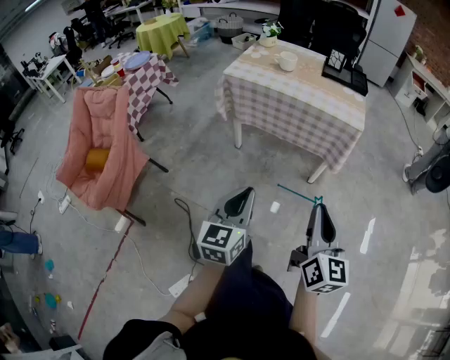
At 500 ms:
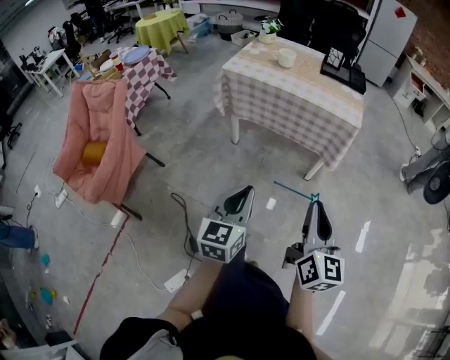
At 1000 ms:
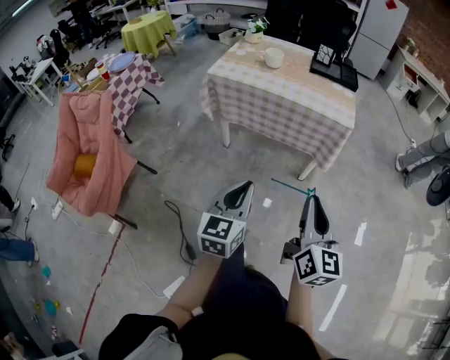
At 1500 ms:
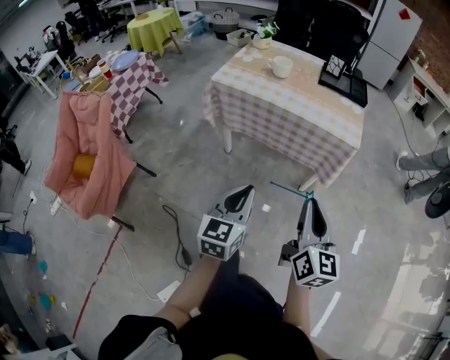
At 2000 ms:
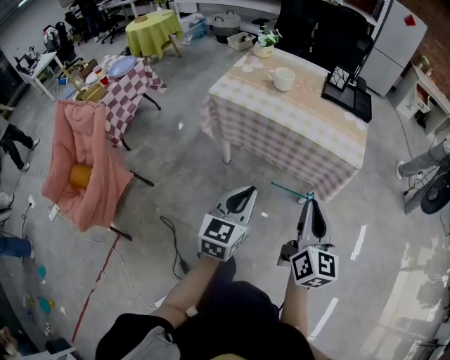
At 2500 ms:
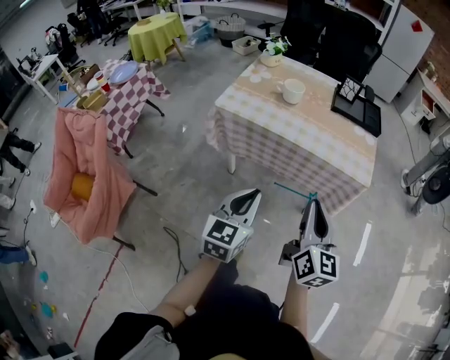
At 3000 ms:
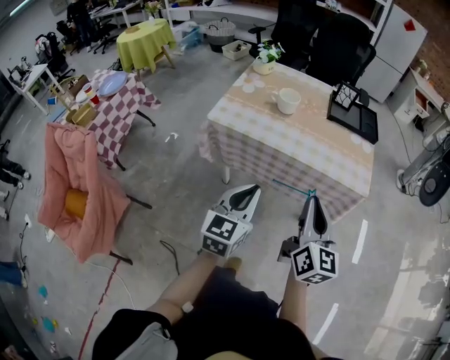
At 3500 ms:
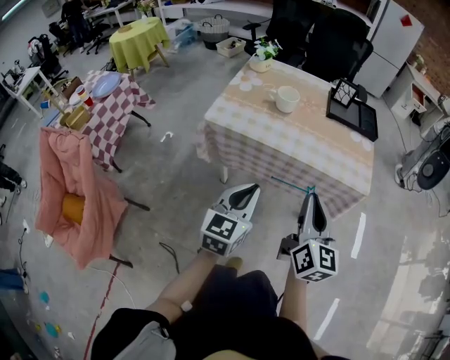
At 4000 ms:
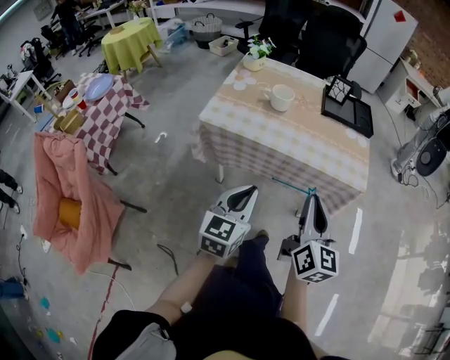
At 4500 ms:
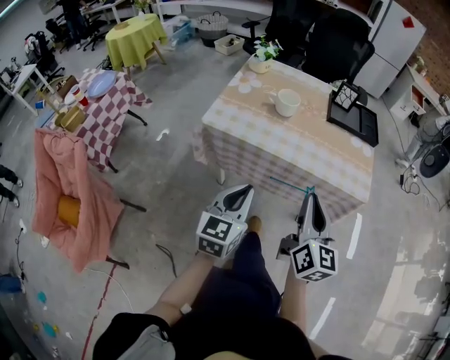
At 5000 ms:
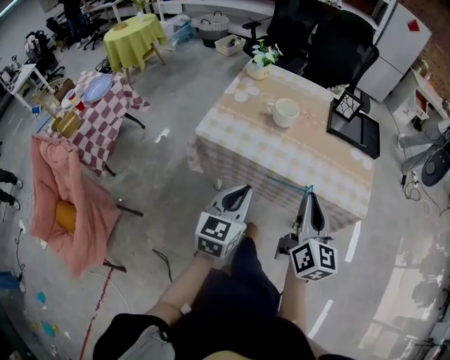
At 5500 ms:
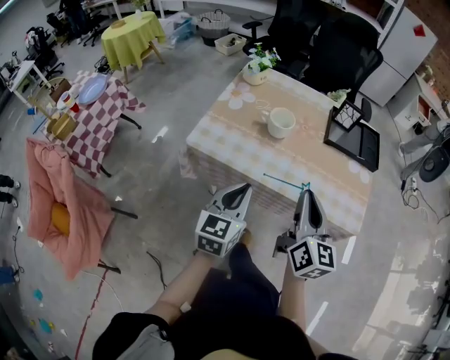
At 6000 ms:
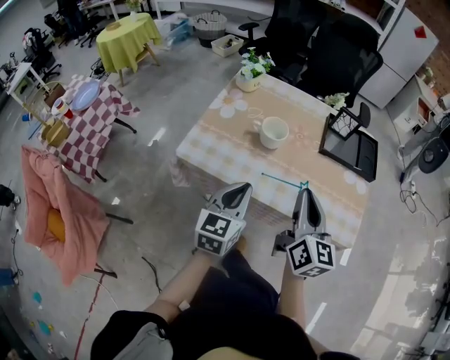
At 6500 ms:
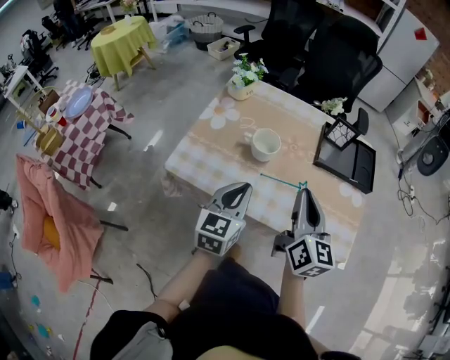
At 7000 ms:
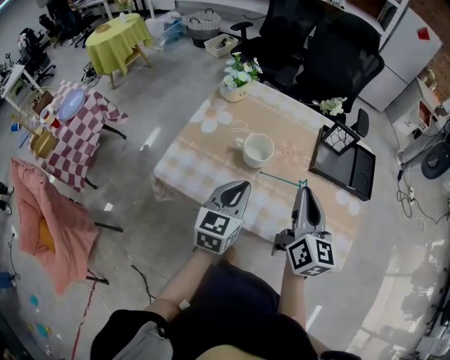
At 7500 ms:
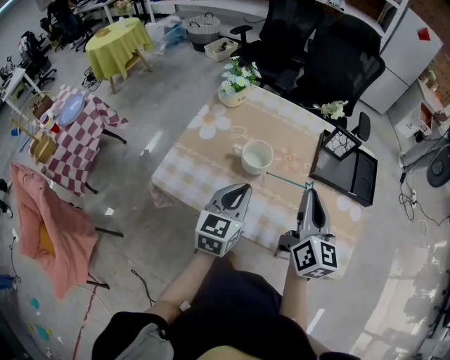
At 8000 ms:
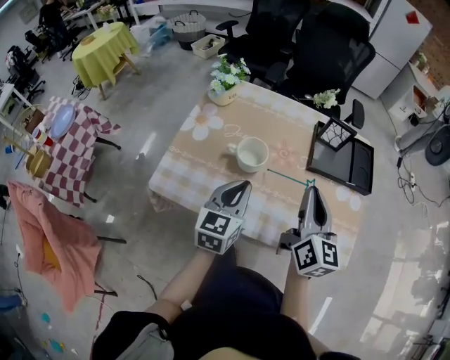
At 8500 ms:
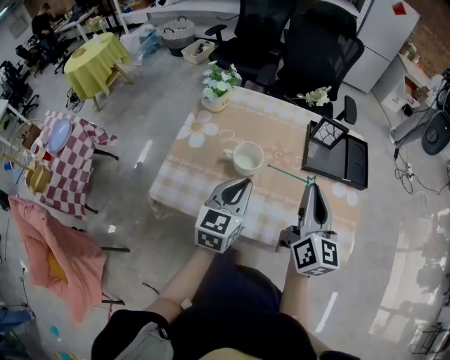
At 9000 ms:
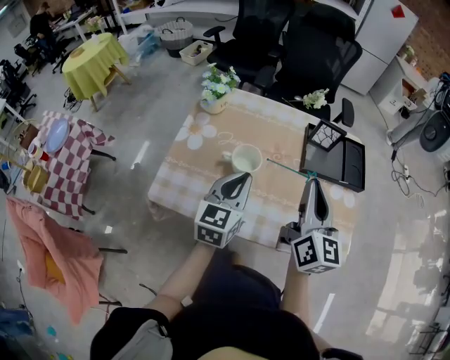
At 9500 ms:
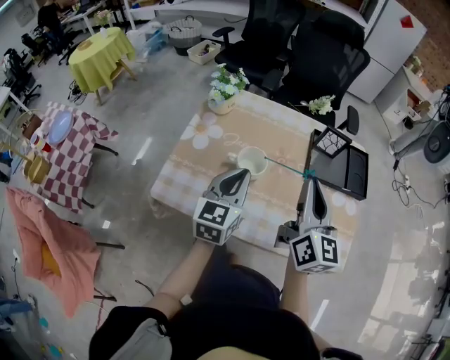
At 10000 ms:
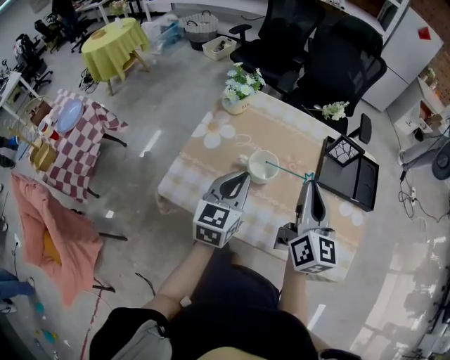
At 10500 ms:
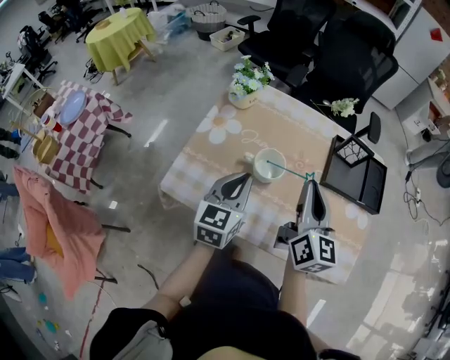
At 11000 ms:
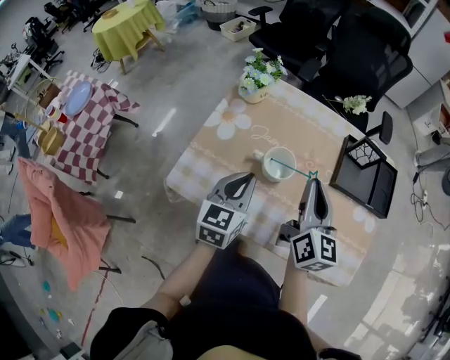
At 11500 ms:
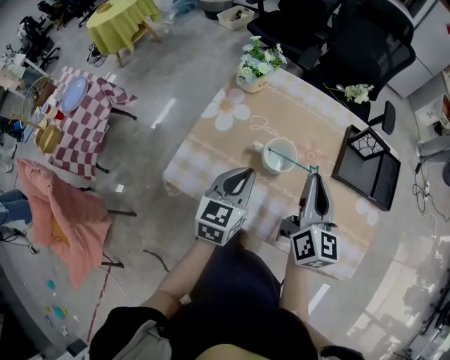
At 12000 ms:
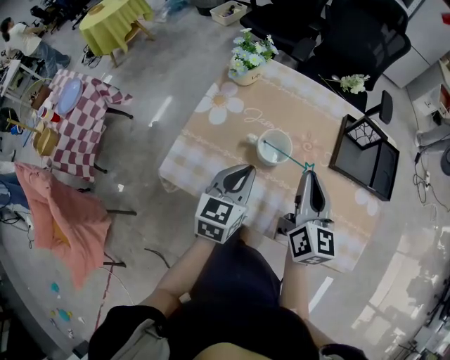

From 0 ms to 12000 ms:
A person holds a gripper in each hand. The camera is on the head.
From 0 ms to 2000 ms: Both grippers travel together forward, approximately 20 cm.
From 2000 ms to 4000 ms: Both grippers travel together forward and to the left, some 15 cm.
From 4000 ms to 6000 ms: Both grippers move forward, approximately 20 cm.
From 6000 ms to 8000 ms: The grippers both shift forward by about 15 cm.
From 8000 ms to 10000 ms: Both grippers travel together to the left, some 5 cm.
From 10000 ms to 12000 ms: Both grippers move downward, about 5 cm.

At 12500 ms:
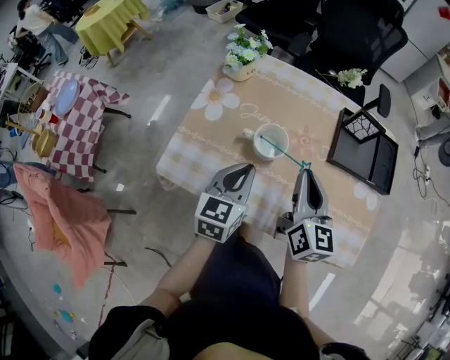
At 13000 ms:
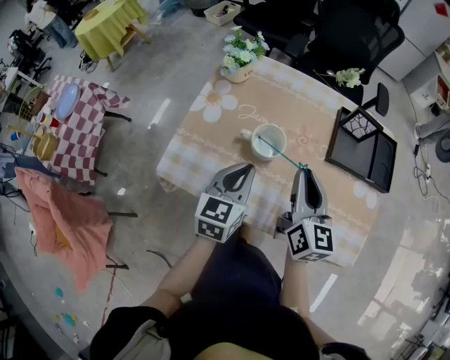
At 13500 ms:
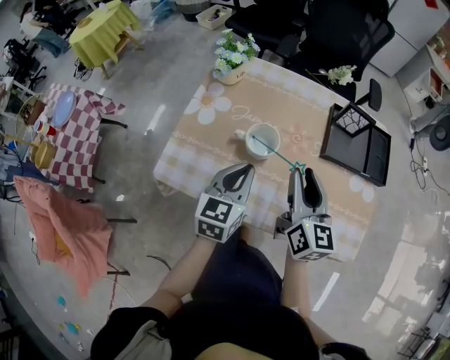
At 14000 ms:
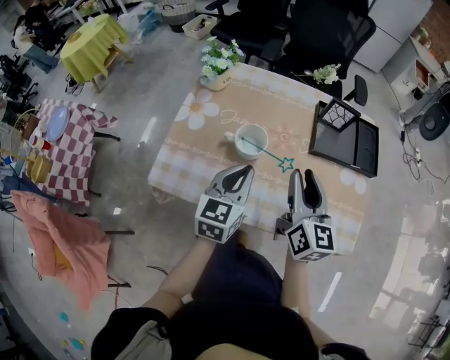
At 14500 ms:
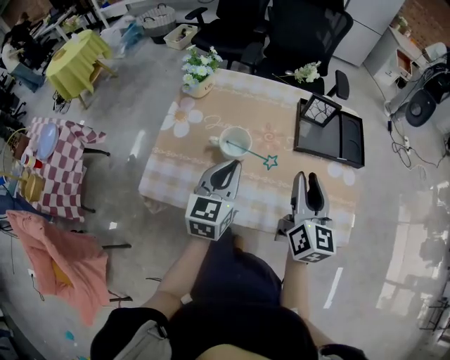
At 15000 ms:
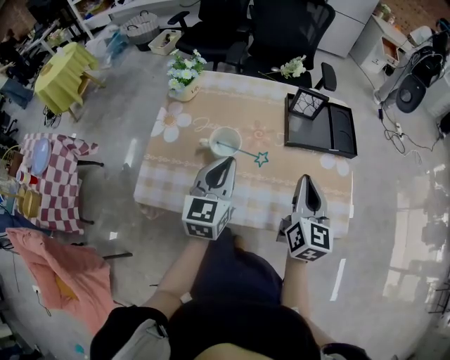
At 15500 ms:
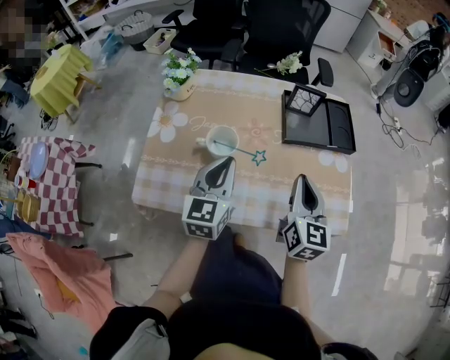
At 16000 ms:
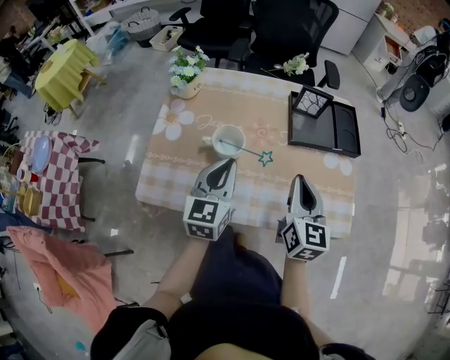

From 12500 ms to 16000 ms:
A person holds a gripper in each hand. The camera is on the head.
From 12500 ms to 14500 ms: The right gripper shifts roughly 10 cm to the right, and opens its fingers. Meanwhile the left gripper changes place by roughly 5 cm.
From 14500 ms to 16000 ms: The right gripper closes its fingers.

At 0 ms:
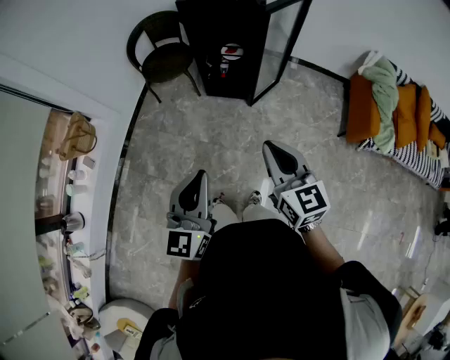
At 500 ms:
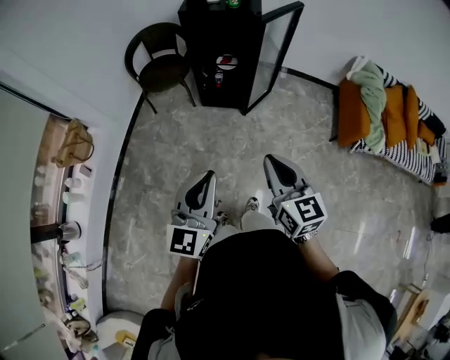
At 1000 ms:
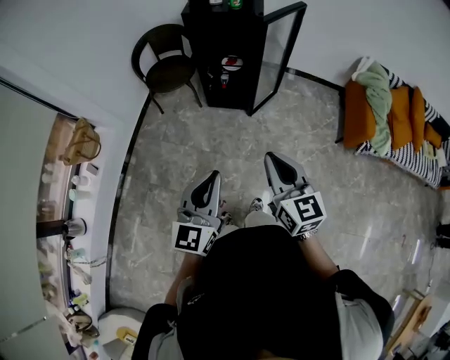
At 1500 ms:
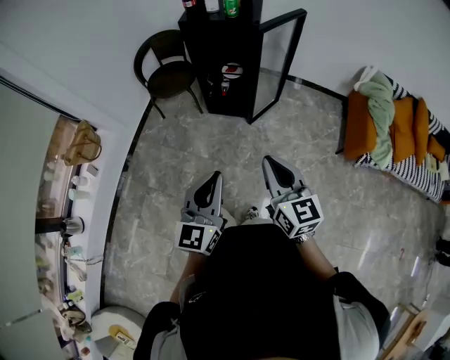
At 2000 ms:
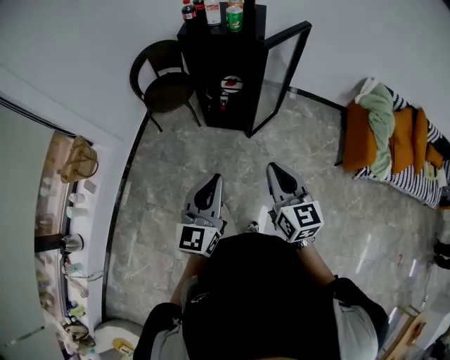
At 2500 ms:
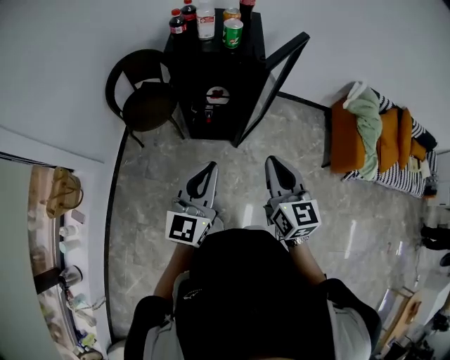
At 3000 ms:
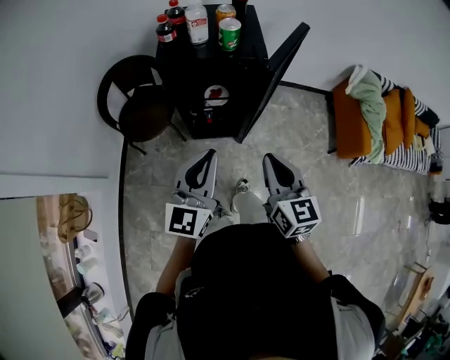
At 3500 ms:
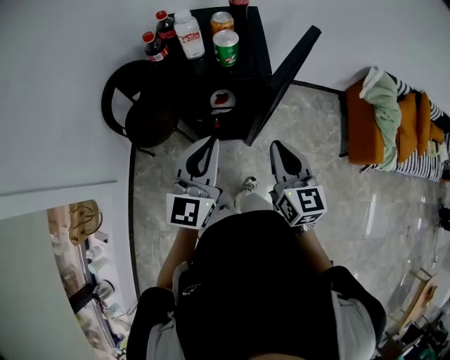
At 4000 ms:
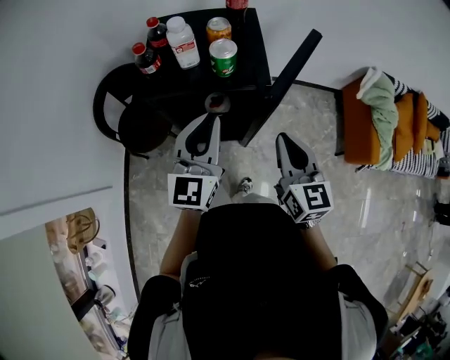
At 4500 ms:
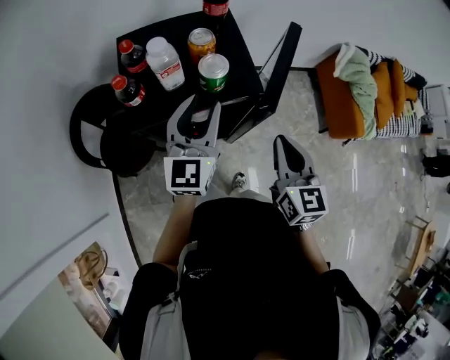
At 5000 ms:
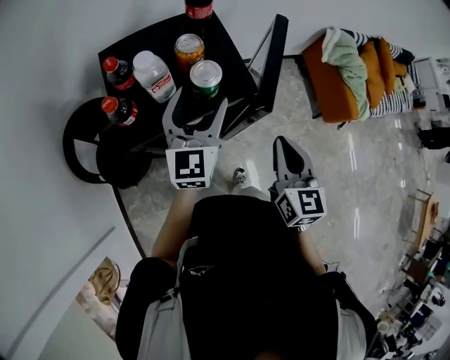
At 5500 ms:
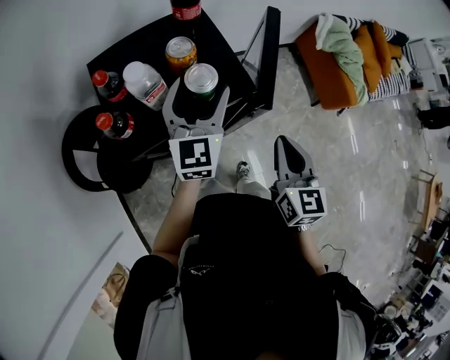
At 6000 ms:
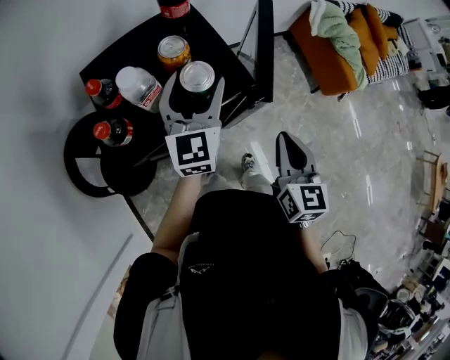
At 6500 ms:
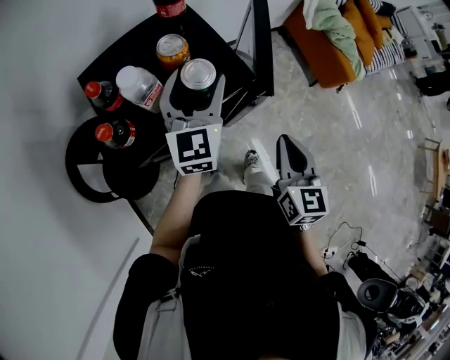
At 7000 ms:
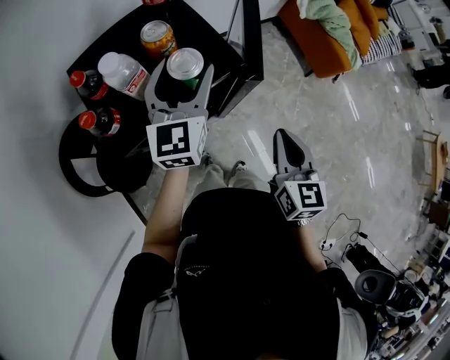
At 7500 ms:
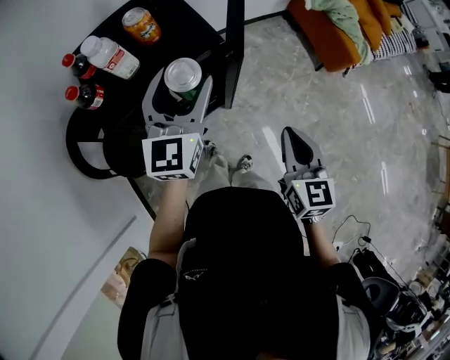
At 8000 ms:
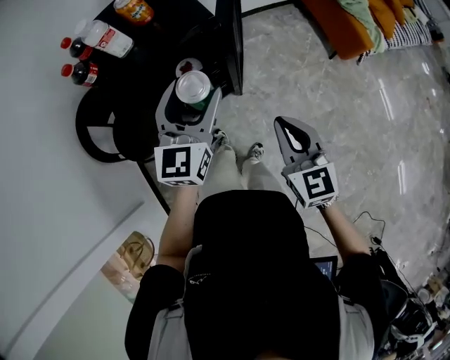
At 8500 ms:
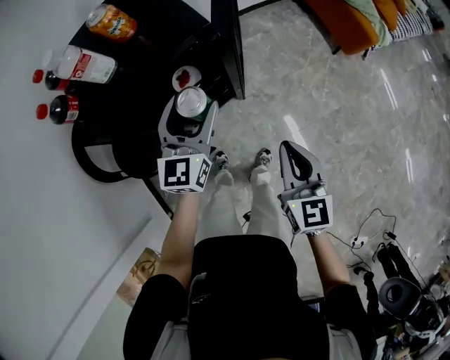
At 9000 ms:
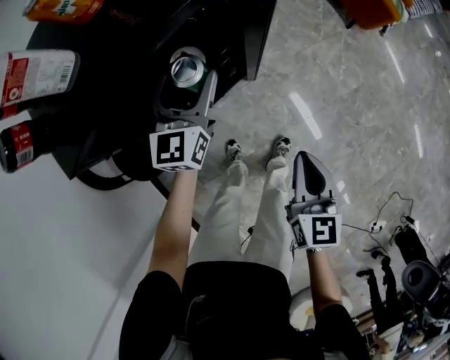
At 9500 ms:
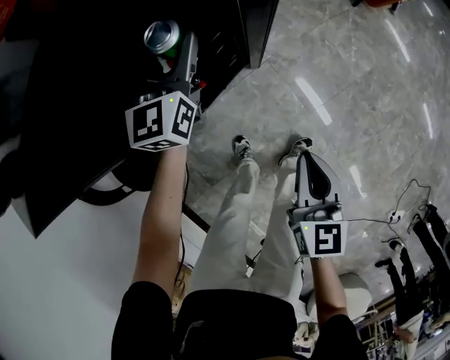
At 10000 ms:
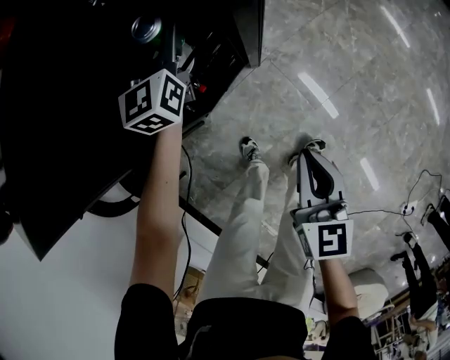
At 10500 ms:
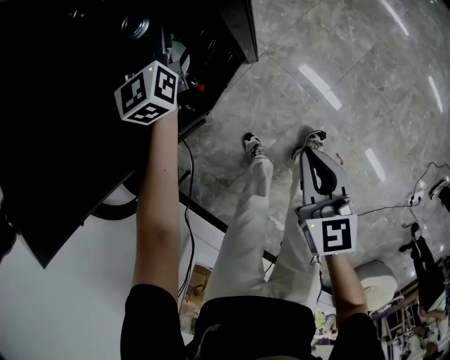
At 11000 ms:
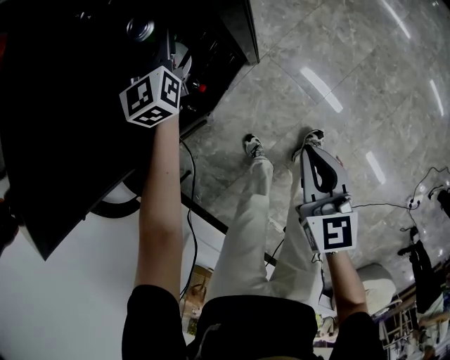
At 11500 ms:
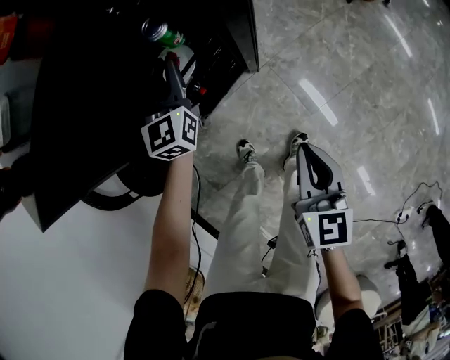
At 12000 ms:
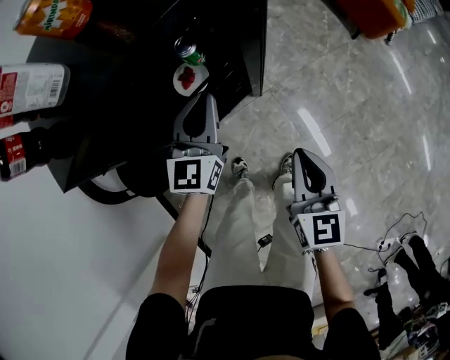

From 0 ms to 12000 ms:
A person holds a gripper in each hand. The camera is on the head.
From 0 ms to 2000 ms: The left gripper heads forward, covering roughly 10 cm. Meanwhile the right gripper moves forward, approximately 5 cm.
From 2000 ms to 4000 ms: The two grippers travel together, forward, approximately 40 cm.
From 4000 ms to 6000 ms: The left gripper changes place by about 20 cm, and opens. Meanwhile the right gripper changes its angle by about 40 degrees.
From 6000 ms to 8000 ms: Both grippers travel together backward and to the right, approximately 20 cm. The right gripper swivels about 20 degrees.
From 8000 ms to 10000 ms: The left gripper heads downward and forward, covering some 40 cm, while the right gripper shifts approximately 30 cm downward, and changes its angle by some 40 degrees.
From 10000 ms to 12000 ms: The right gripper travels upward and to the right by approximately 10 cm. Meanwhile the left gripper is displaced backward, upward and to the right by some 20 cm, and closes.
